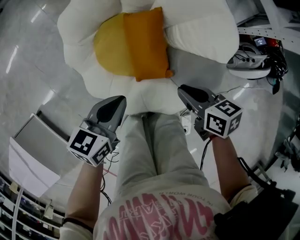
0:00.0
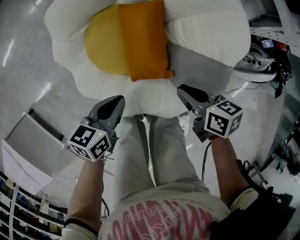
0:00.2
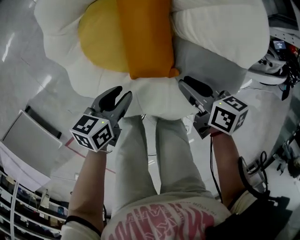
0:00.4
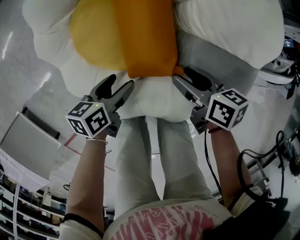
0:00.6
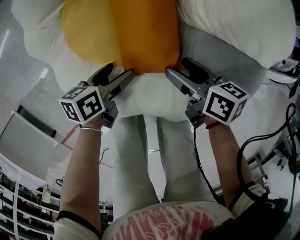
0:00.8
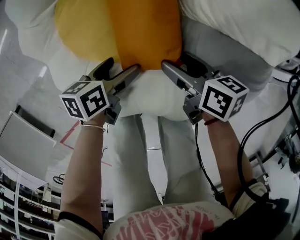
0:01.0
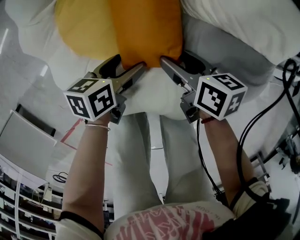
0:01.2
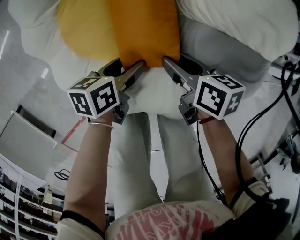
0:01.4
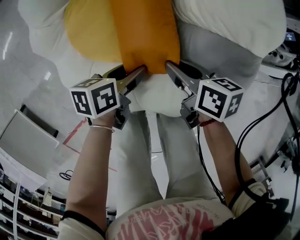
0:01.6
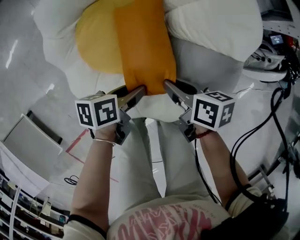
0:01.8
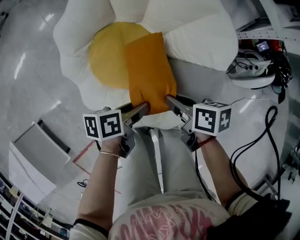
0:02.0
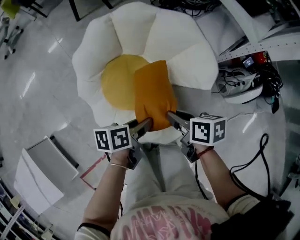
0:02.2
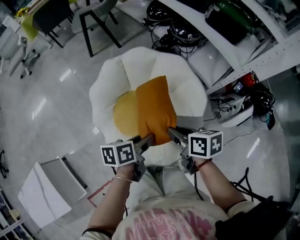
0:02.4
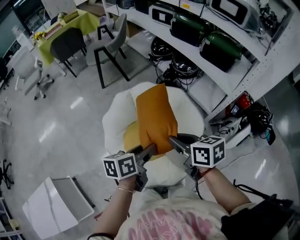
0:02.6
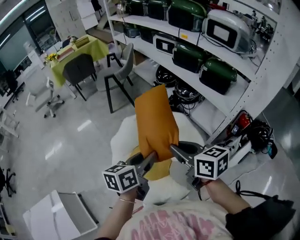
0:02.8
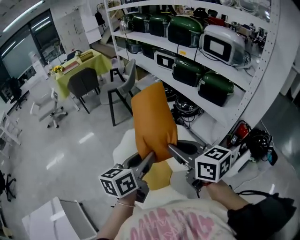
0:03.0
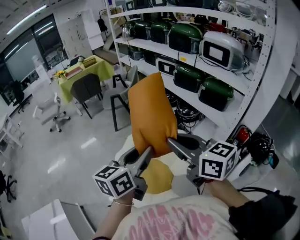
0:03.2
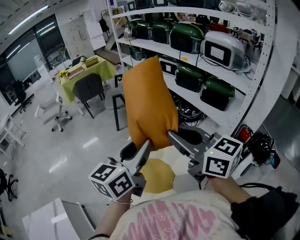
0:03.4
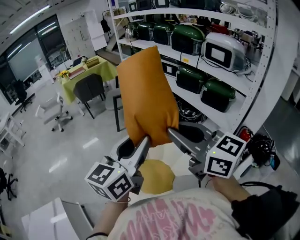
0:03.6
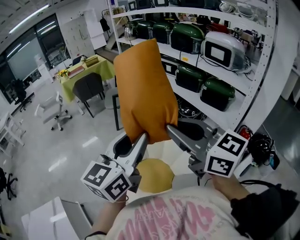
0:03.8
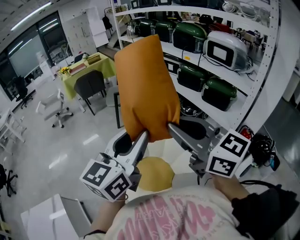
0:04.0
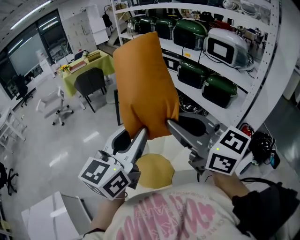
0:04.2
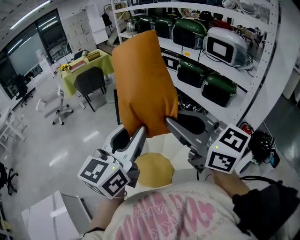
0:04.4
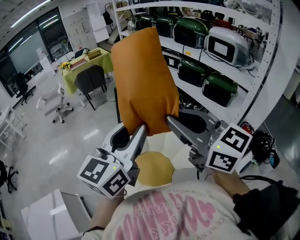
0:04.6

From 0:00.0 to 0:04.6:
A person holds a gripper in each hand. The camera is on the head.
From 0:00.0 to 0:01.6: The left gripper travels downward and to the right by about 30 cm, changes its angle by some 30 degrees, and opens up. The right gripper travels downward by roughly 20 cm, and opens, then closes once more.
From 0:01.6 to 0:03.0: Both grippers move upward, about 70 cm. The right gripper tilts its fingers roughly 30 degrees upward; the left gripper turns by approximately 50 degrees.
From 0:03.0 to 0:04.6: The grippers both shift upward by approximately 15 cm. The left gripper changes its angle by roughly 30 degrees. Meanwhile the right gripper turns by approximately 30 degrees.

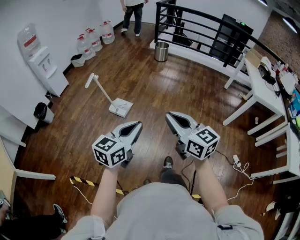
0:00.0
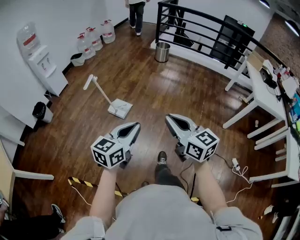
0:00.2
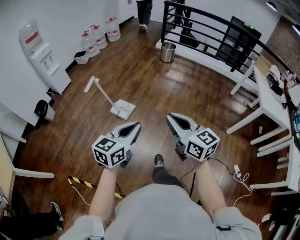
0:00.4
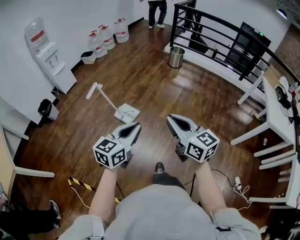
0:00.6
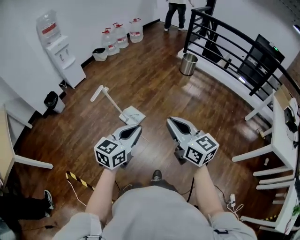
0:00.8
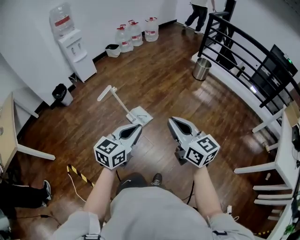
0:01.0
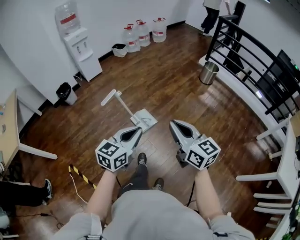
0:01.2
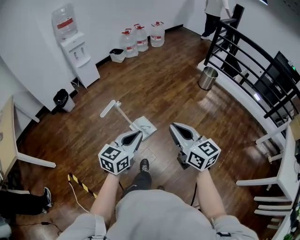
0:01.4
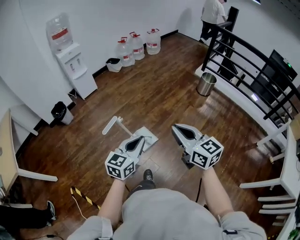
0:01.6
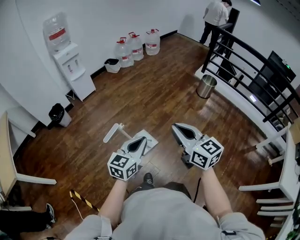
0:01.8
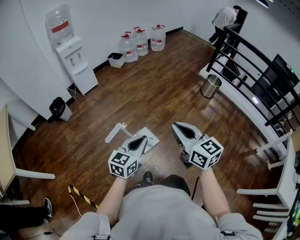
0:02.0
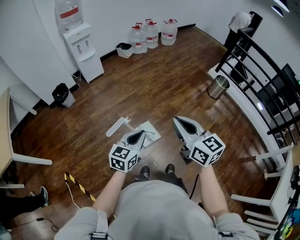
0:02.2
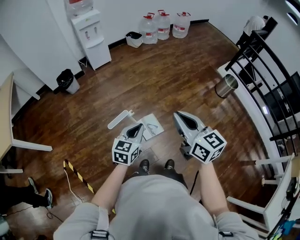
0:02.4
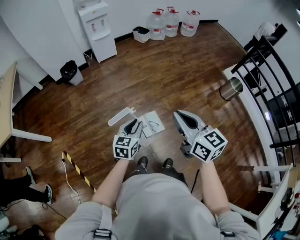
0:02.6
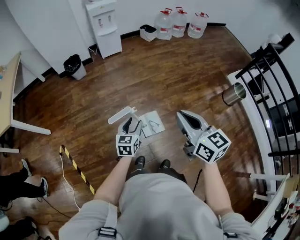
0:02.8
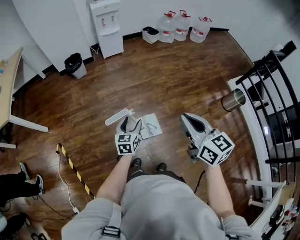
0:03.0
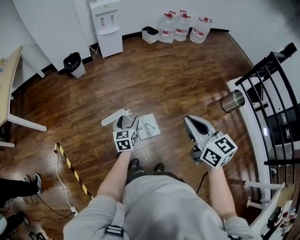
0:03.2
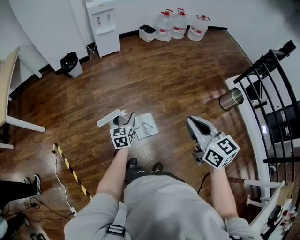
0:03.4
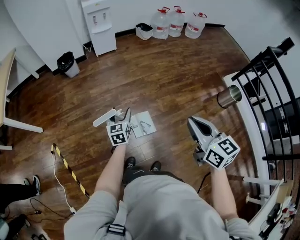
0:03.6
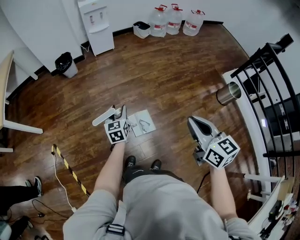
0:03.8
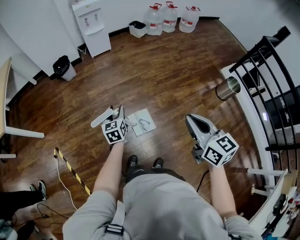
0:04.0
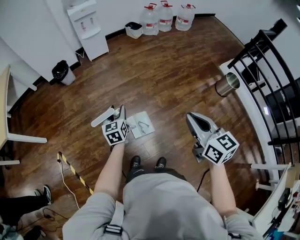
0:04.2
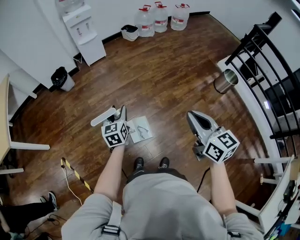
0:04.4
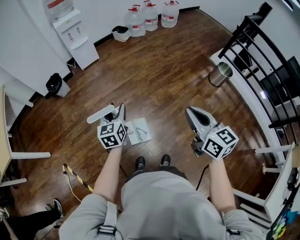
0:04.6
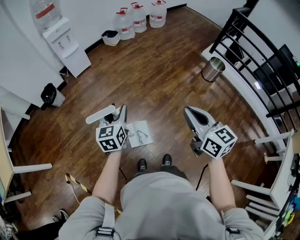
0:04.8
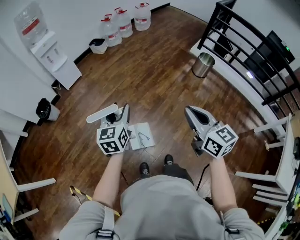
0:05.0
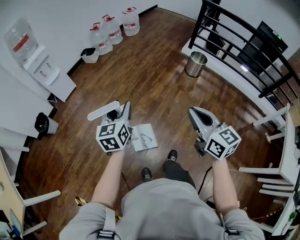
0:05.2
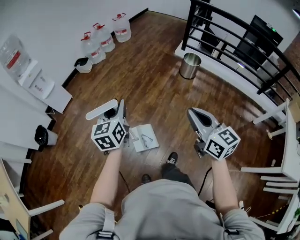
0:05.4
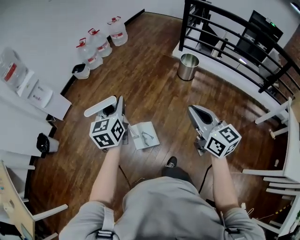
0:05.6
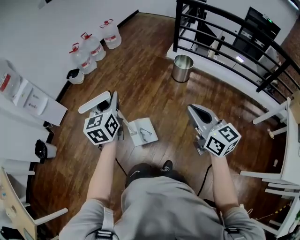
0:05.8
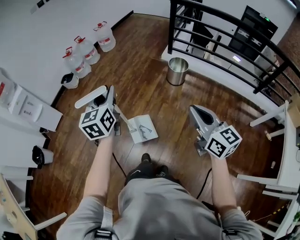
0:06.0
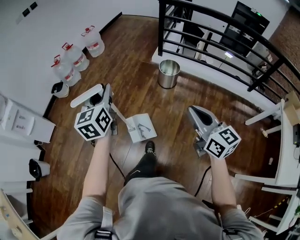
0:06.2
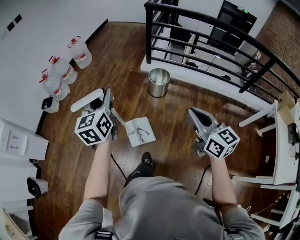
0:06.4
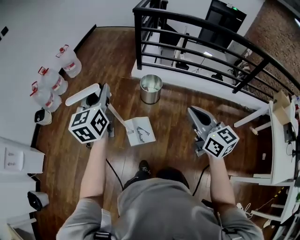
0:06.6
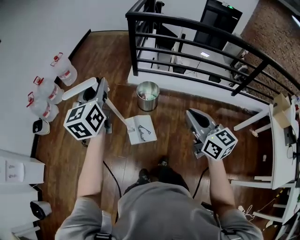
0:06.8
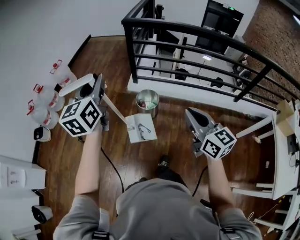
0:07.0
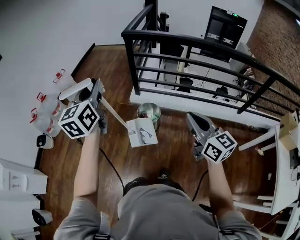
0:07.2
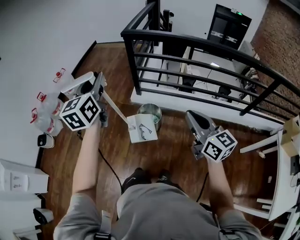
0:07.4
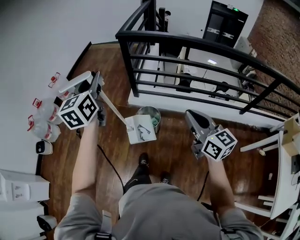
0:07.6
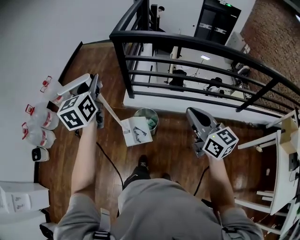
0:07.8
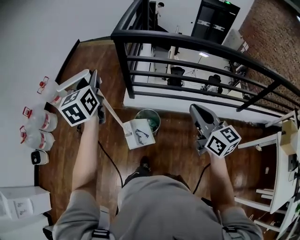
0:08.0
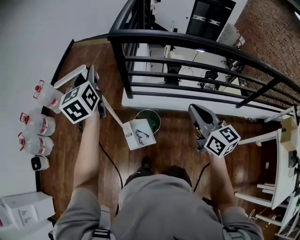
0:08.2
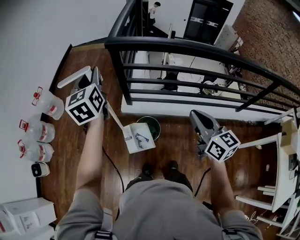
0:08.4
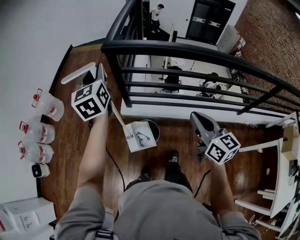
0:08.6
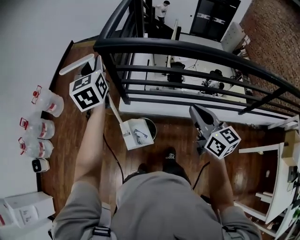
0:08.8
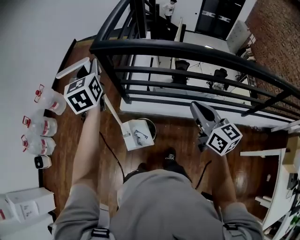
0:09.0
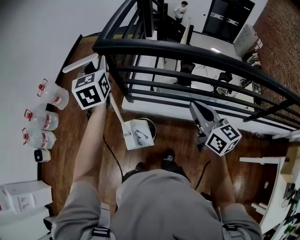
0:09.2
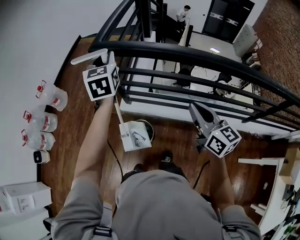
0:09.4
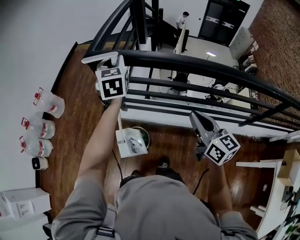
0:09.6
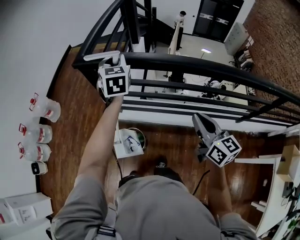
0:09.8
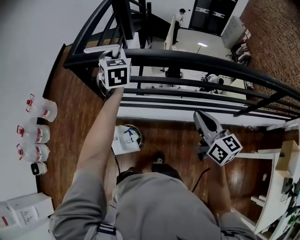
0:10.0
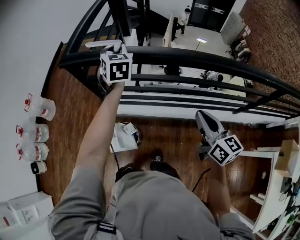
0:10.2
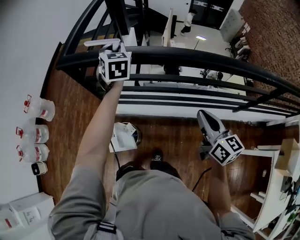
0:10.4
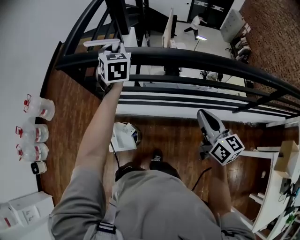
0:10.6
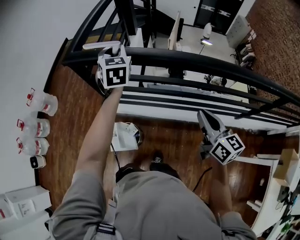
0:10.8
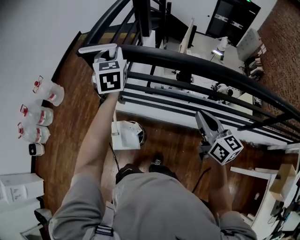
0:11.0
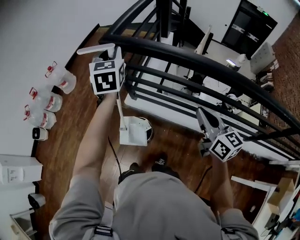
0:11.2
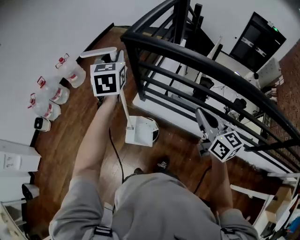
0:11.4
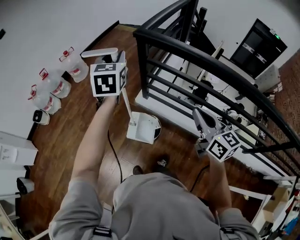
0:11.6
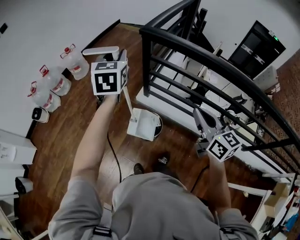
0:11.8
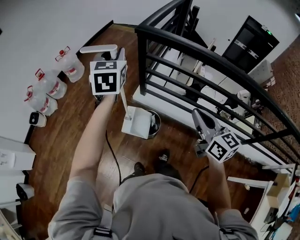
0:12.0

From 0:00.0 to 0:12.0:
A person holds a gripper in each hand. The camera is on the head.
From 0:00.0 to 0:01.6: Both grippers are carried forward, some 40 cm. The right gripper turns by about 20 degrees. The left gripper swivels roughly 30 degrees.
From 0:01.6 to 0:03.0: The right gripper changes place by approximately 20 cm. The left gripper ends up roughly 30 cm from where it was, rotates about 50 degrees, and opens up.
From 0:03.0 to 0:04.4: The right gripper goes approximately 10 cm to the right; the left gripper travels upward and forward by some 10 cm.
From 0:04.4 to 0:06.0: The right gripper moves roughly 40 cm, and swivels about 30 degrees, while the left gripper moves roughly 60 cm, and changes its angle by about 40 degrees.
From 0:06.0 to 0:07.6: The pair of grippers is taken forward and to the right, approximately 60 cm.
From 0:07.6 to 0:09.0: Both grippers move forward and to the right, about 30 cm.
From 0:09.0 to 0:10.4: The right gripper travels to the right by roughly 20 cm. Meanwhile the left gripper moves to the right, approximately 30 cm.
From 0:10.4 to 0:12.0: The right gripper heads to the left, covering some 30 cm, and changes its angle by approximately 30 degrees. Meanwhile the left gripper is displaced to the left and backward by some 40 cm.

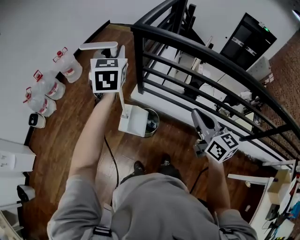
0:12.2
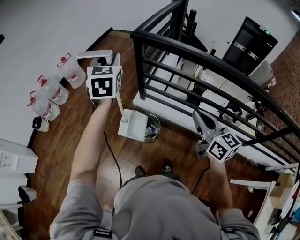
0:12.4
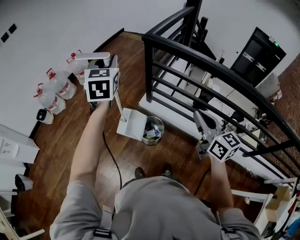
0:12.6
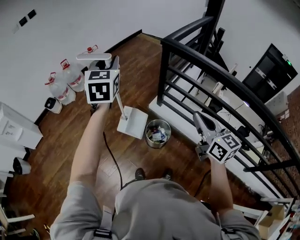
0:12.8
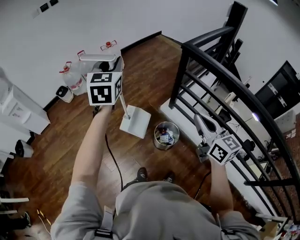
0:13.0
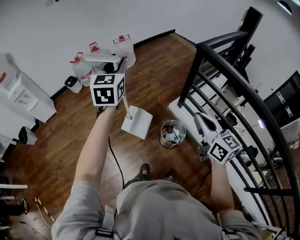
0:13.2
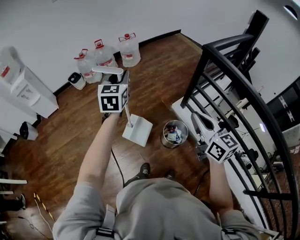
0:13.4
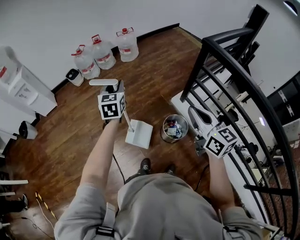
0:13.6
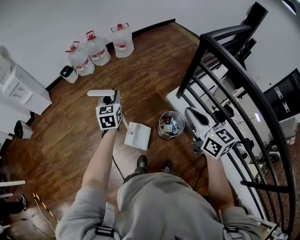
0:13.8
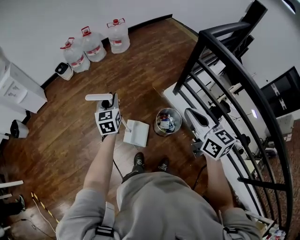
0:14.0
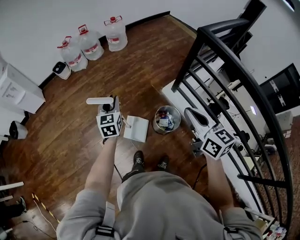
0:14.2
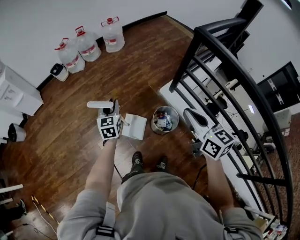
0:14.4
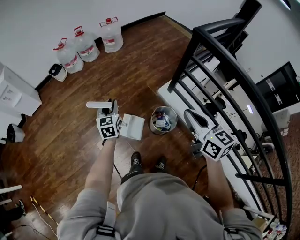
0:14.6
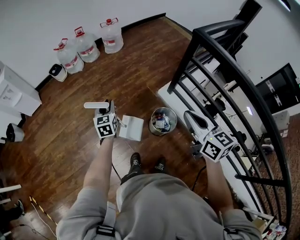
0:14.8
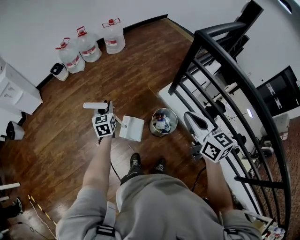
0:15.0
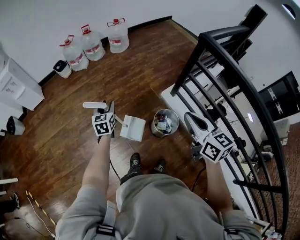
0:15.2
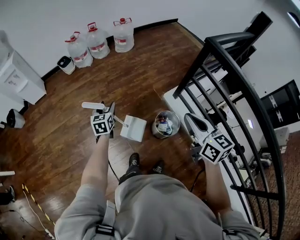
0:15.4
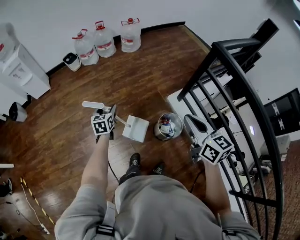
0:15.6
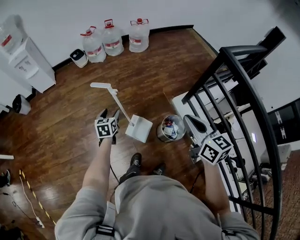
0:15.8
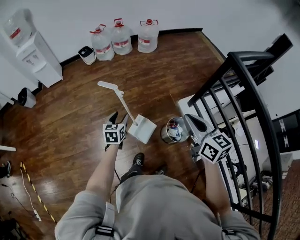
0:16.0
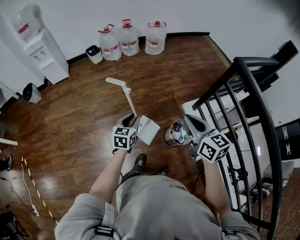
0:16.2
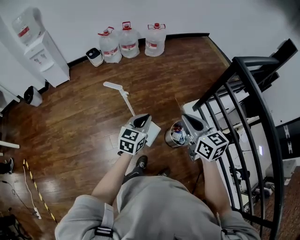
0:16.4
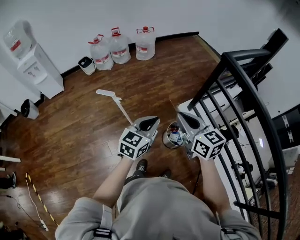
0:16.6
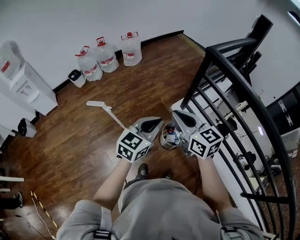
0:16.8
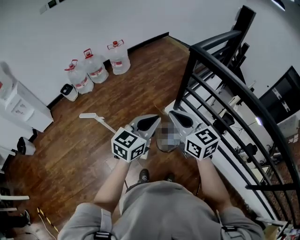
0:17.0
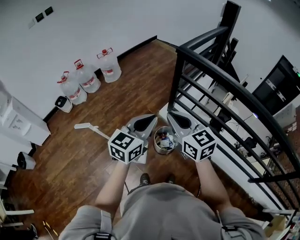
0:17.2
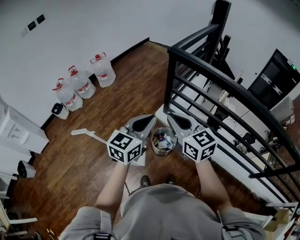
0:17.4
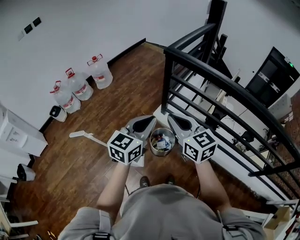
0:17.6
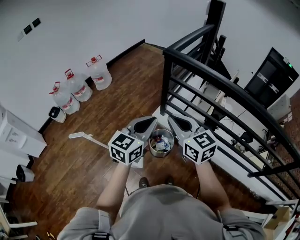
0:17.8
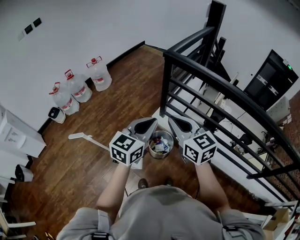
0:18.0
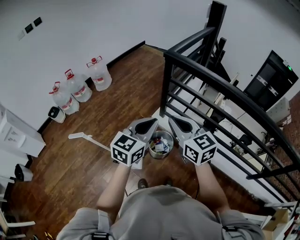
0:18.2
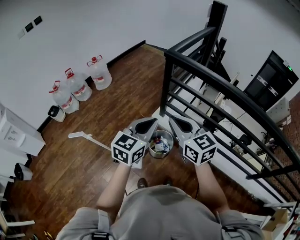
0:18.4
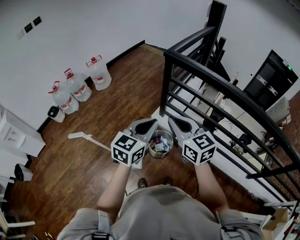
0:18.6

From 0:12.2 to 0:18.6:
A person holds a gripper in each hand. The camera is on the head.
From 0:12.2 to 0:13.8: The right gripper moves about 20 cm, and swivels approximately 30 degrees. The left gripper changes place by roughly 40 cm, and changes its angle by roughly 40 degrees.
From 0:13.8 to 0:15.4: The left gripper is displaced downward and to the left by approximately 15 cm, and opens its fingers.
From 0:15.4 to 0:17.0: The left gripper shifts by some 35 cm, turns by about 50 degrees, and closes up.
From 0:17.0 to 0:18.6: Both grippers move to the right, about 5 cm.
